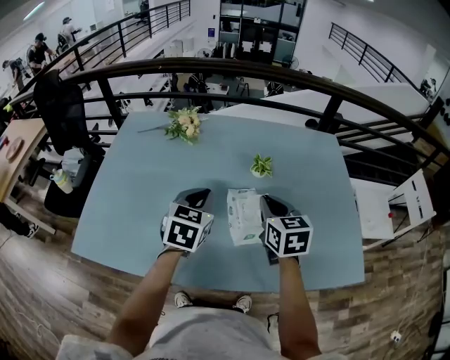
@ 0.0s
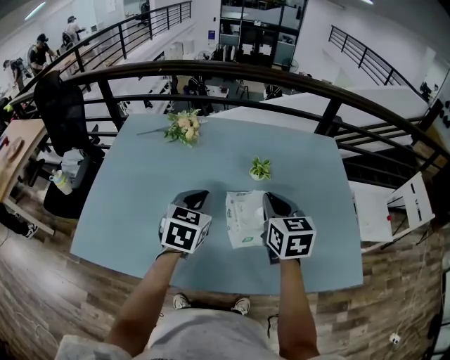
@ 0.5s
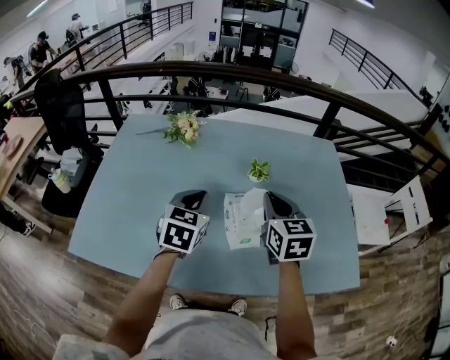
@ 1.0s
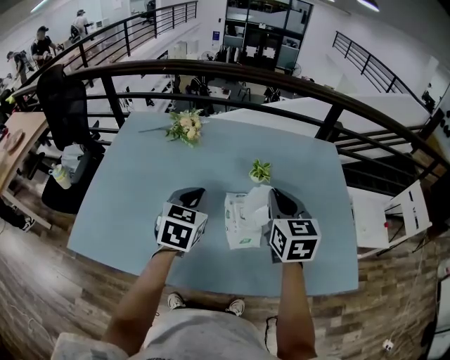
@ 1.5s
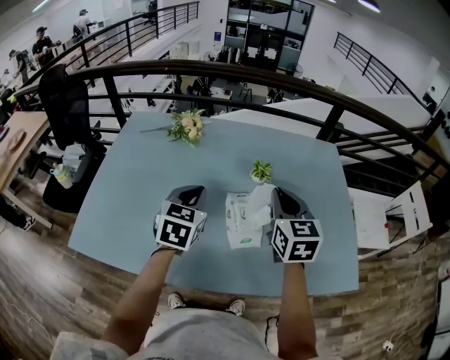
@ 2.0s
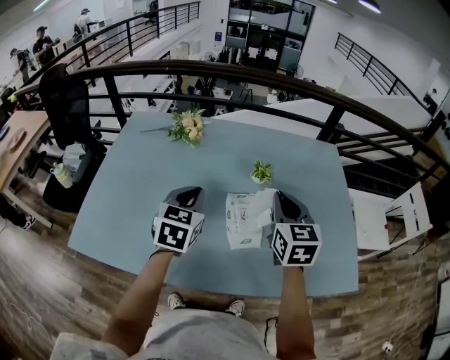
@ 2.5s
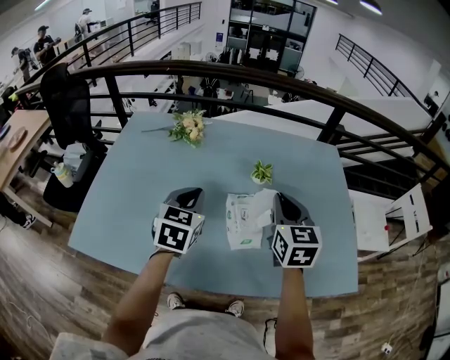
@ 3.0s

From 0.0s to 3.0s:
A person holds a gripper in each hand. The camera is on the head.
From 0.0s to 1.5s: The right gripper goes some 5 cm upward.
From 1.5s to 3.0s: The grippers make only small movements.

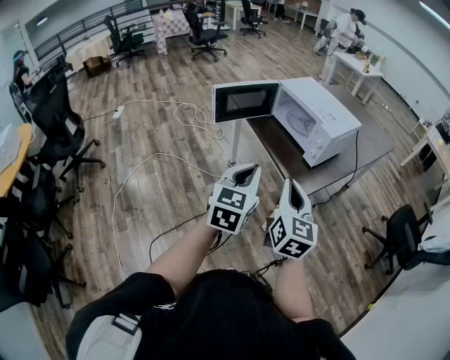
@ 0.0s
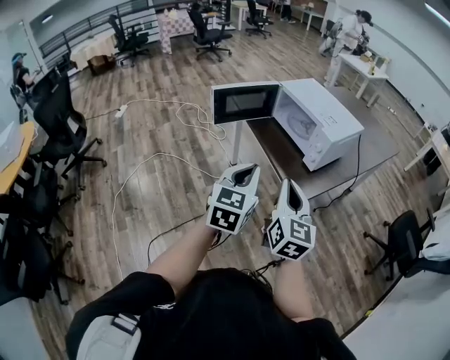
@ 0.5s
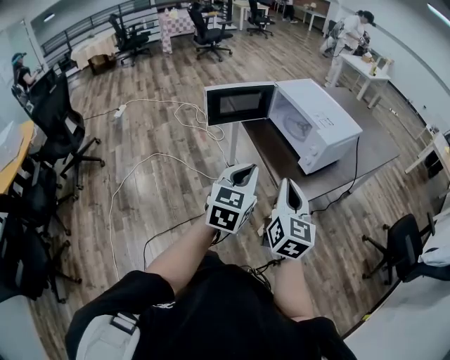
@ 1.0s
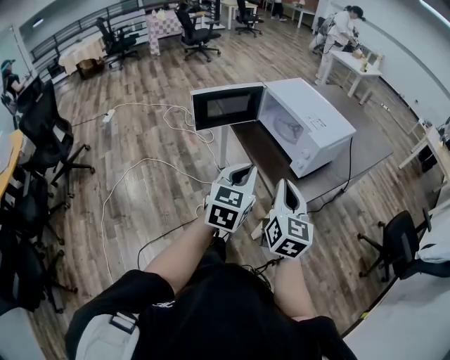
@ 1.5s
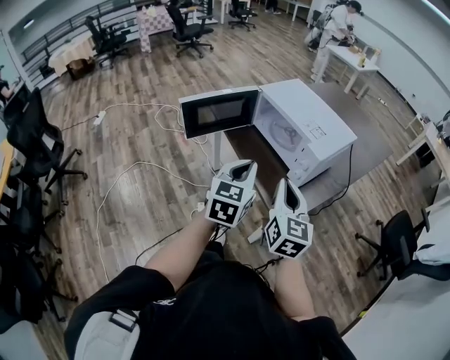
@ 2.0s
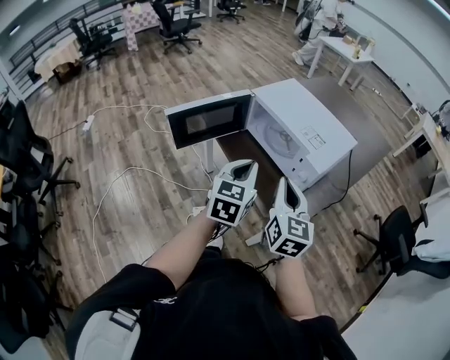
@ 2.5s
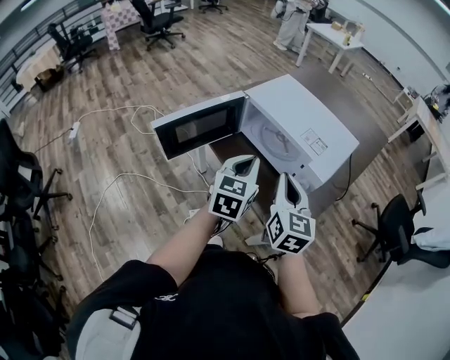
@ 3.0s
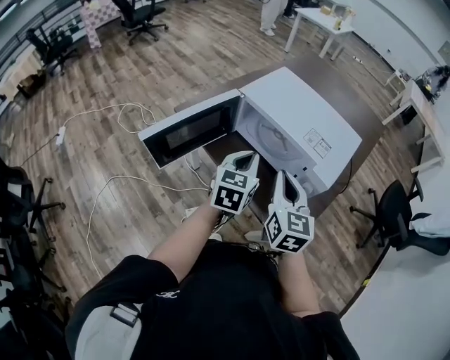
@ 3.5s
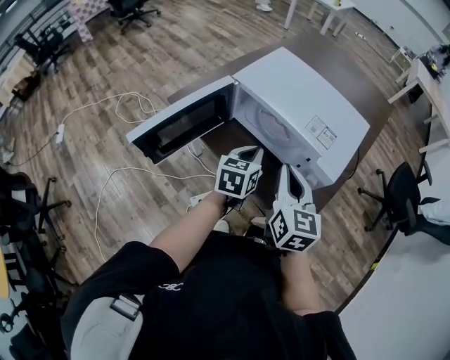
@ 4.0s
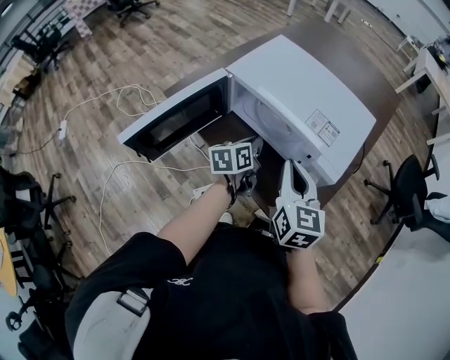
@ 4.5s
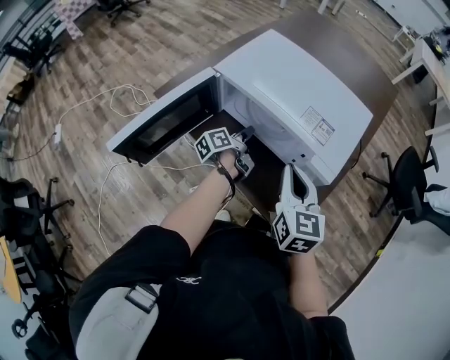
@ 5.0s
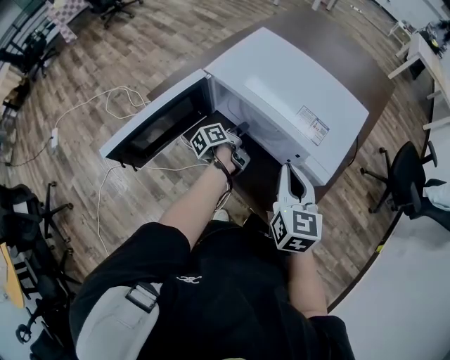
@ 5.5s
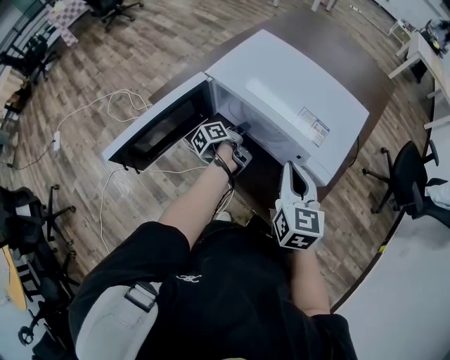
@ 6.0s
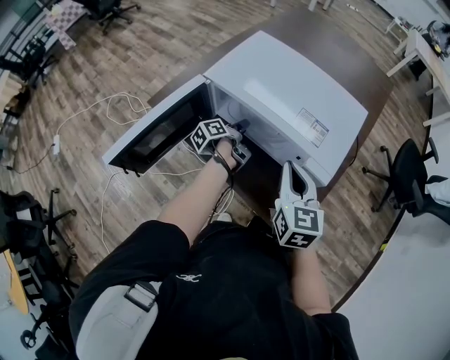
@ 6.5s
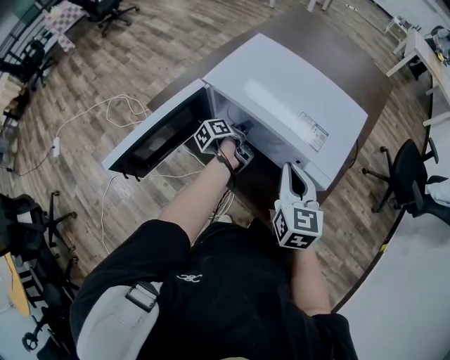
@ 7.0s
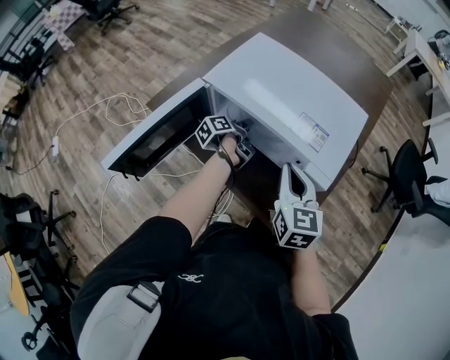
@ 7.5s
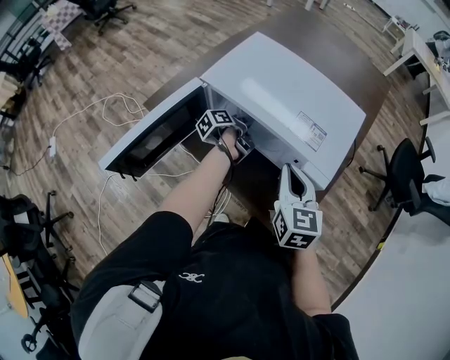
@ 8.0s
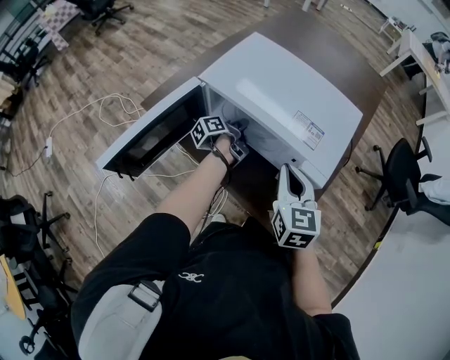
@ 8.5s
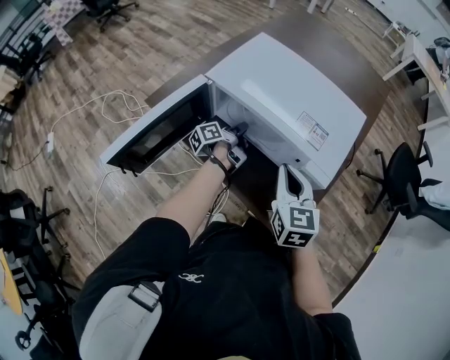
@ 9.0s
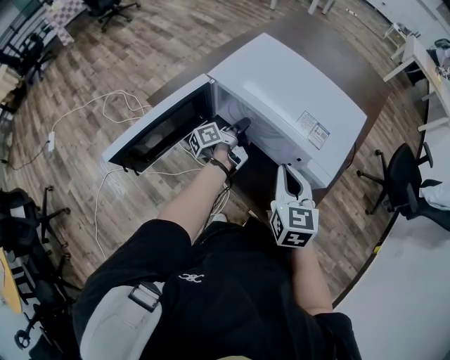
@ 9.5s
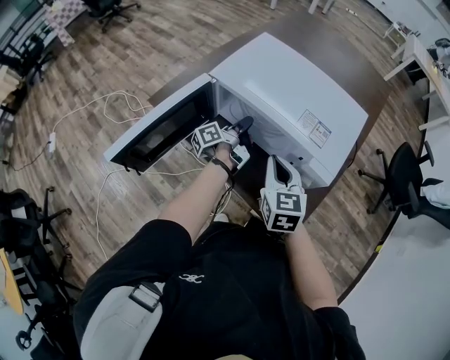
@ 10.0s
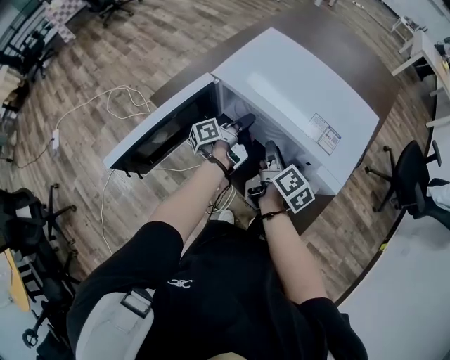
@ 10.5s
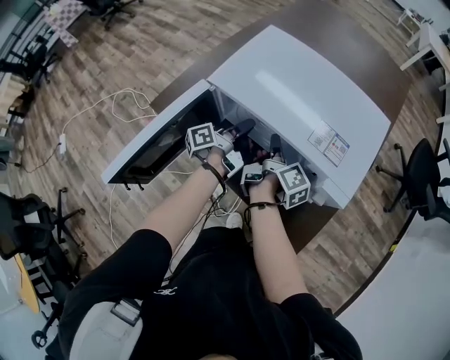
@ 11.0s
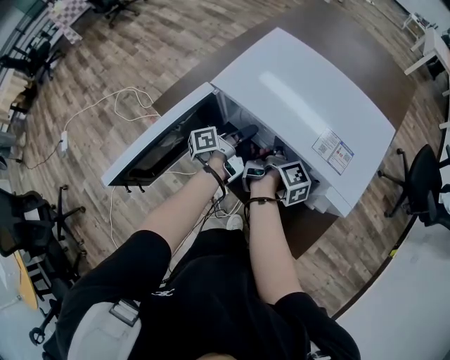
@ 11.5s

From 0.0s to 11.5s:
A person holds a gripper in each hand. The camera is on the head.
From 0.0s to 2.0s: Both grippers travel together forward, approximately 20 cm.
From 2.0s to 4.0s: The left gripper goes roughly 30 cm forward and downward, and changes its angle by about 30 degrees; the right gripper is displaced forward by about 20 cm.
From 4.0s to 6.0s: The right gripper moves to the right, some 5 cm. The left gripper travels downward and forward by roughly 20 cm, twists some 70 degrees counterclockwise, seen from behind, and opens its fingers.
From 6.0s to 7.5s: The grippers make only small movements.
From 7.5s to 9.5s: The left gripper rotates some 20 degrees.
From 9.5s to 11.5s: The right gripper travels downward and forward by roughly 20 cm, and rolls clockwise, seen from behind, by approximately 90 degrees.

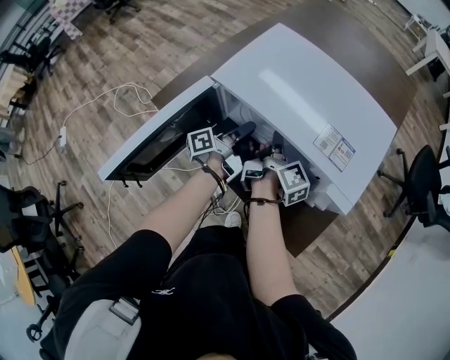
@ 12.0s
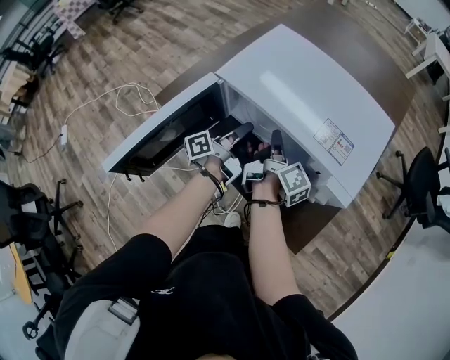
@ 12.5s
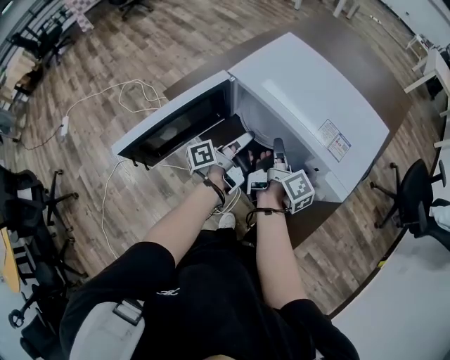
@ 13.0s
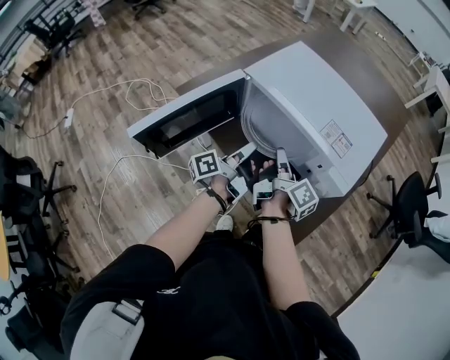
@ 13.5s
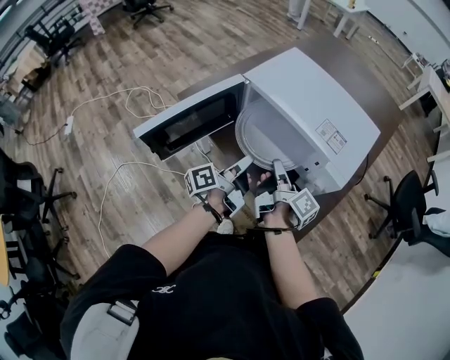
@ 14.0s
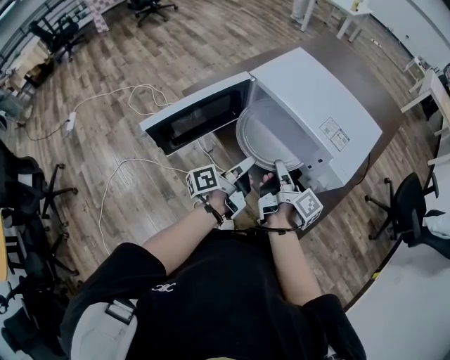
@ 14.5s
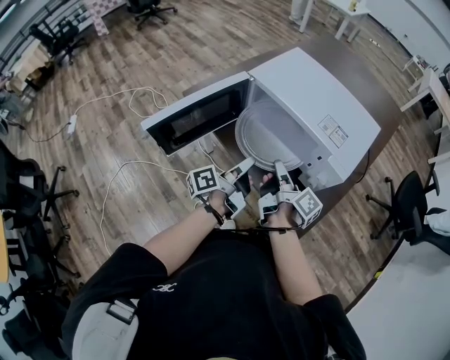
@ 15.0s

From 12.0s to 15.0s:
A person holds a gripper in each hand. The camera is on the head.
From 12.0s to 13.5s: The grippers both shift backward and upward by some 15 cm.
From 13.5s to 15.0s: Both grippers travel together backward, approximately 5 cm.

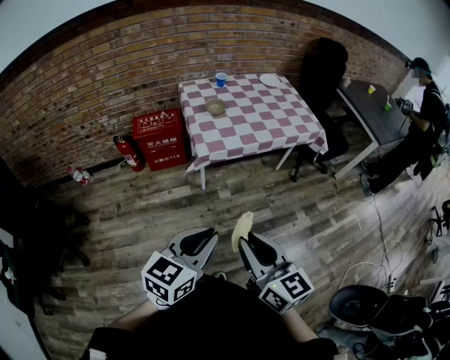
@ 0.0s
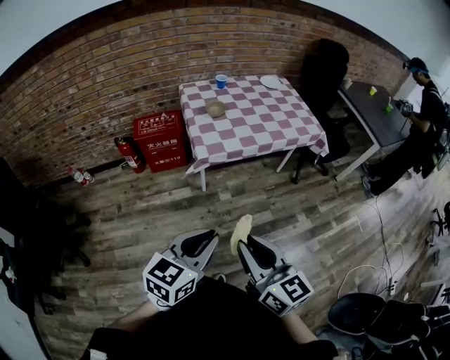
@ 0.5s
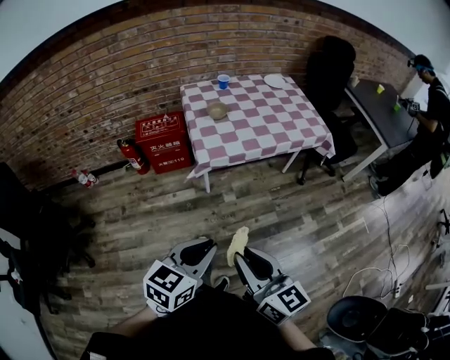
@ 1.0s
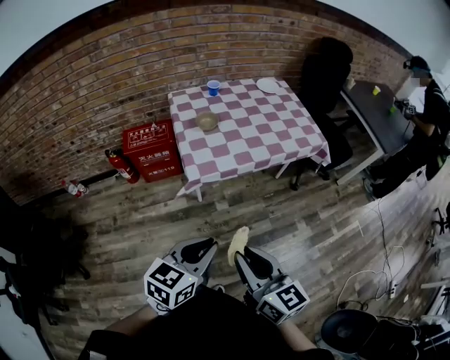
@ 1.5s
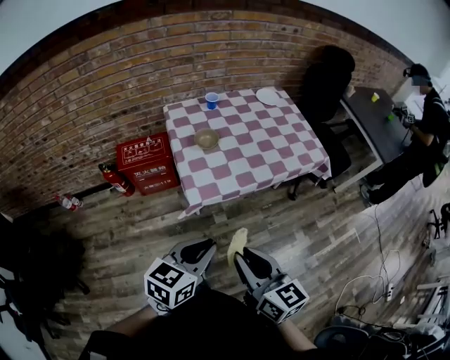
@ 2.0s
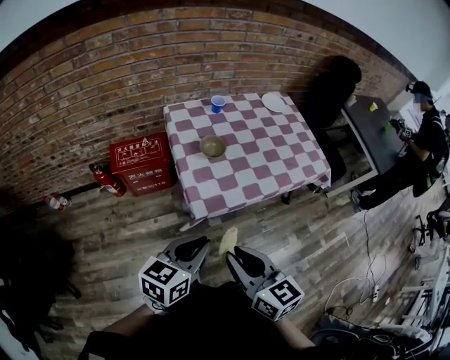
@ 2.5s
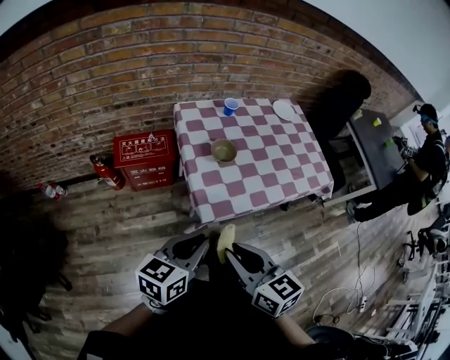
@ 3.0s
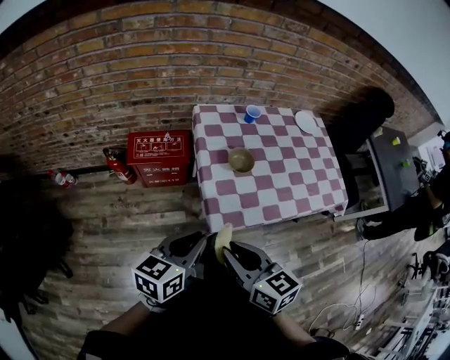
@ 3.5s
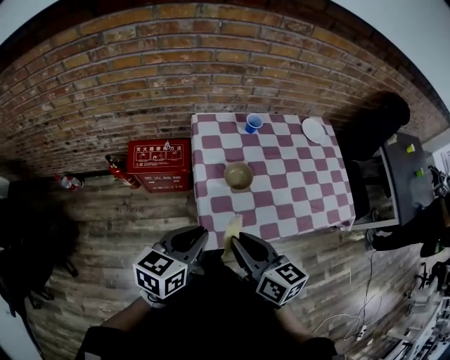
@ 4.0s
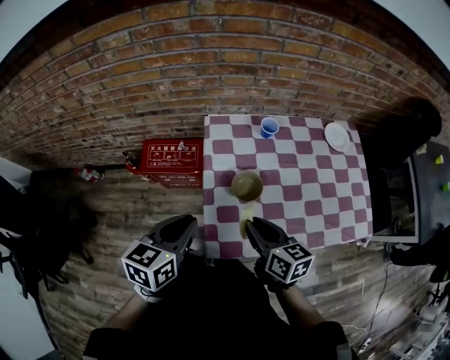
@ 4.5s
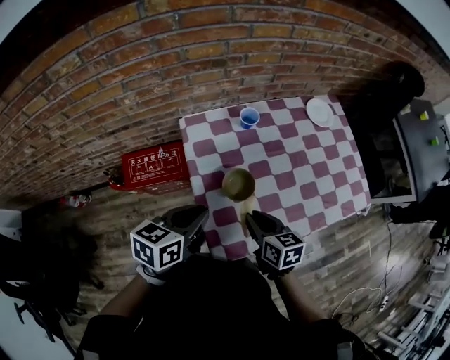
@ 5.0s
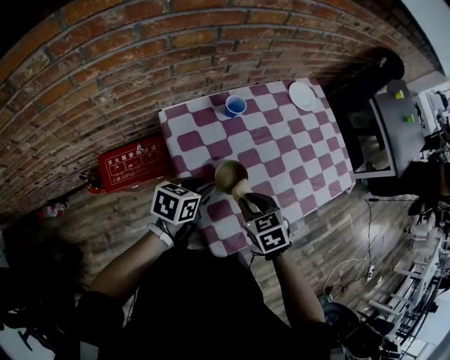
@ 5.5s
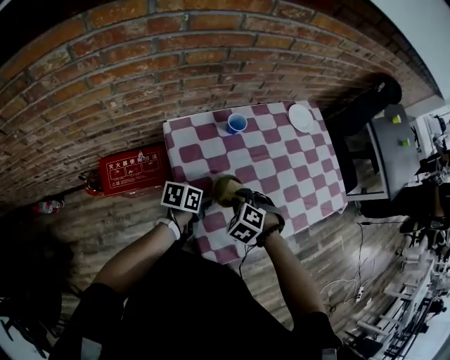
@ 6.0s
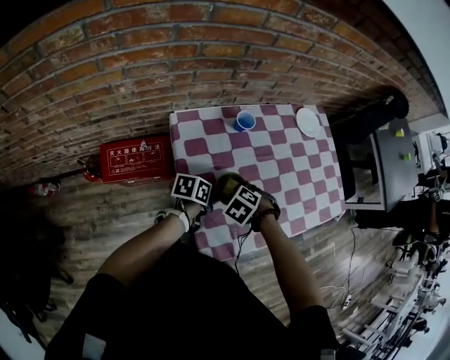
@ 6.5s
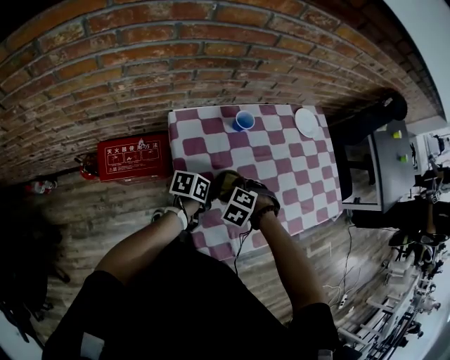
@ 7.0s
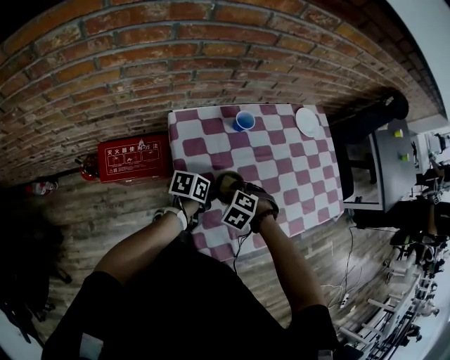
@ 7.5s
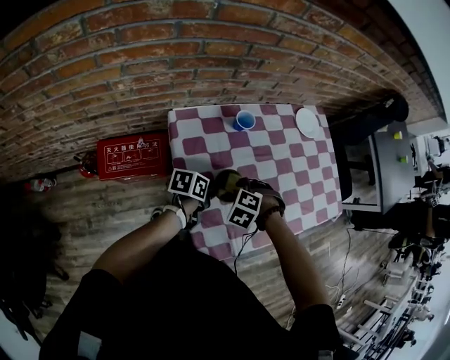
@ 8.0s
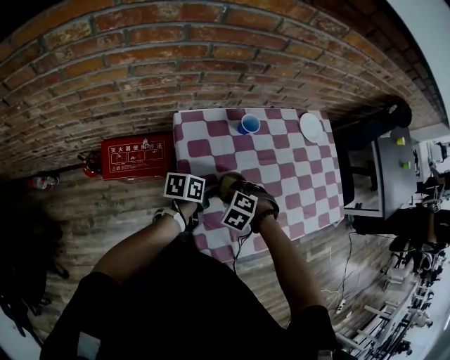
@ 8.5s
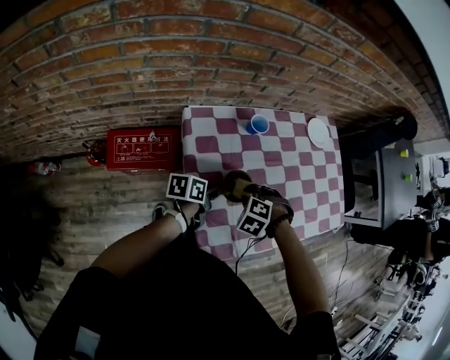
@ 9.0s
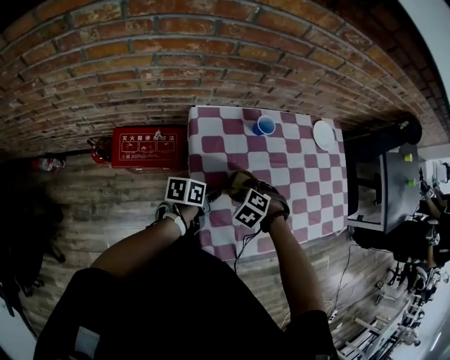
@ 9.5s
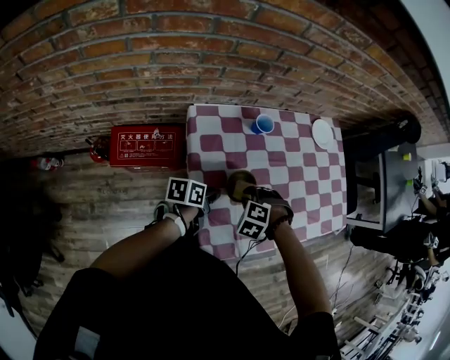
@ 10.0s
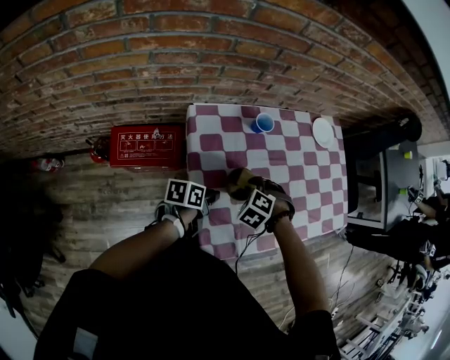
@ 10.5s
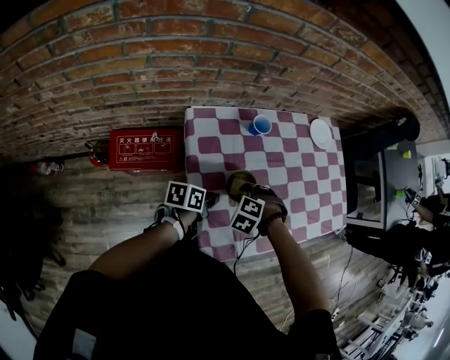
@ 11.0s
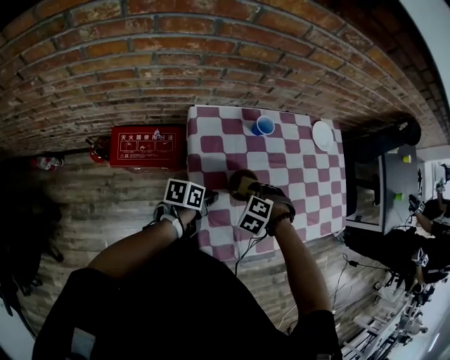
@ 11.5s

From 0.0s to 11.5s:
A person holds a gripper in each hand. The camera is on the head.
From 0.0s to 2.0s: The grippers both shift forward by some 25 cm.
From 2.0s to 4.0s: The right gripper goes roughly 30 cm forward; the left gripper heads forward and to the left, covering some 30 cm.
From 4.0s to 6.0s: The right gripper ends up about 30 cm from where it was, and points its fingers approximately 50 degrees further downward, while the left gripper shifts by some 30 cm, and turns by some 40 degrees.
From 6.0s to 7.5s: The grippers stay close to where they were, moving slightly.
From 7.5s to 11.5s: The grippers move only a little.
